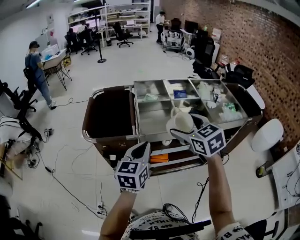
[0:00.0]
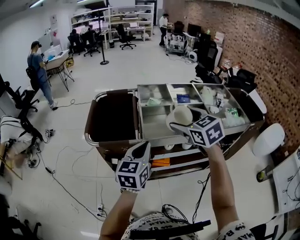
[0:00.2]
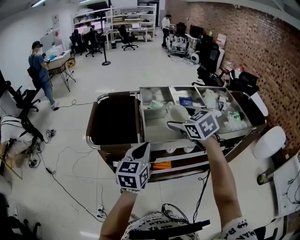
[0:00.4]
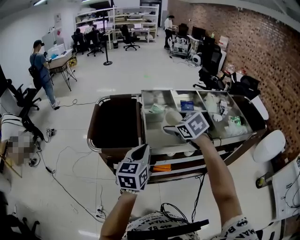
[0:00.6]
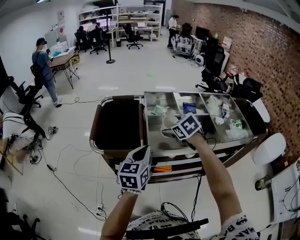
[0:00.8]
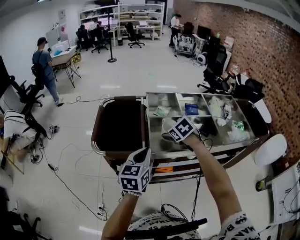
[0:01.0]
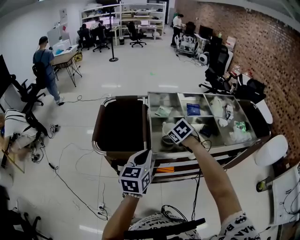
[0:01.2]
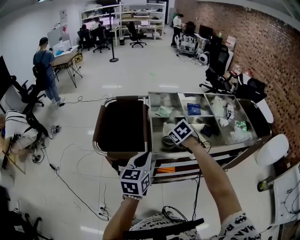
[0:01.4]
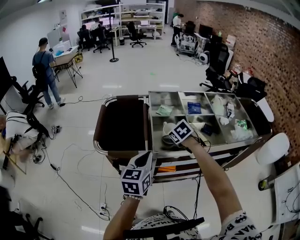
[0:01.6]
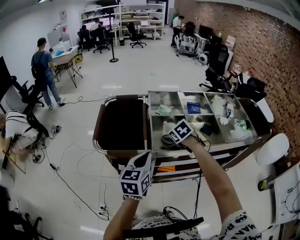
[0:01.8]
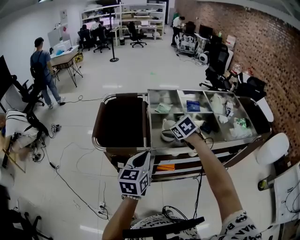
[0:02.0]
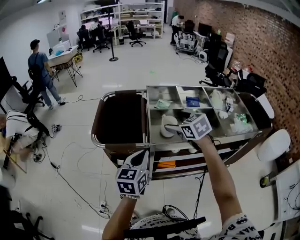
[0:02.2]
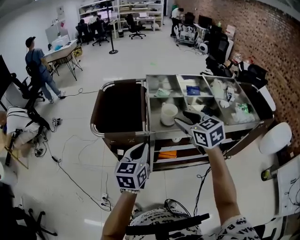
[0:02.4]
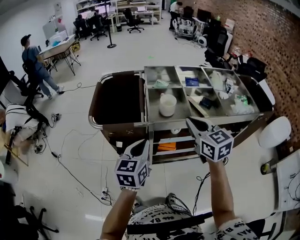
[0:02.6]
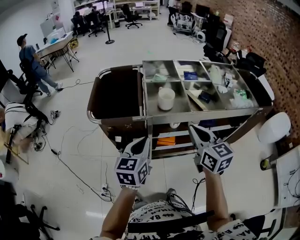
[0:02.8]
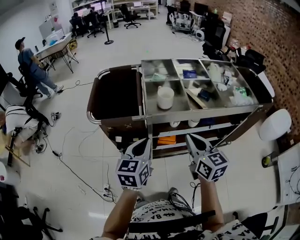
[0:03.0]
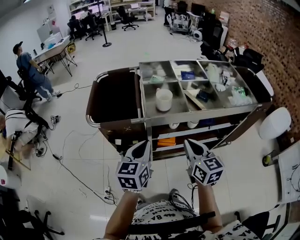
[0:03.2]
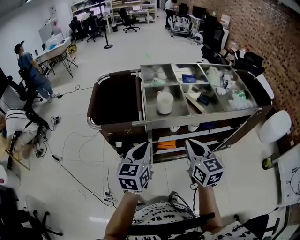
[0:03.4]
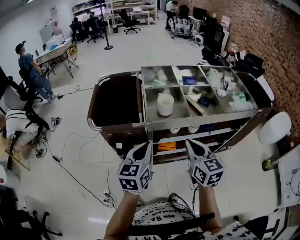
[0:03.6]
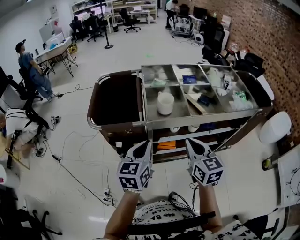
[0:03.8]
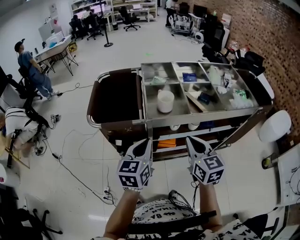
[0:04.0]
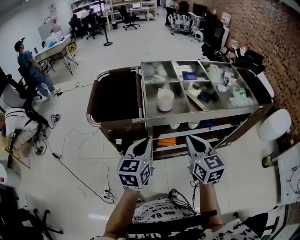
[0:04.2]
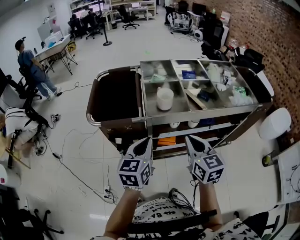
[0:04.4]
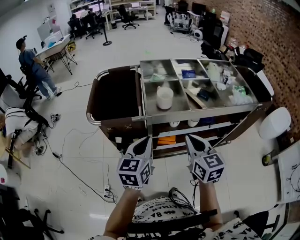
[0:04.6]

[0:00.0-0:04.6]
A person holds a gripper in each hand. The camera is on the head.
0:00.0 to 0:01.6: The right gripper moves forward and downward, approximately 20 cm, and points its fingers roughly 30 degrees further downward. Meanwhile the left gripper ends up about 5 cm from where it was.
0:01.6 to 0:03.0: The right gripper travels backward by some 25 cm, tilts its fingers some 50 degrees upward, and closes up. The left gripper travels backward by about 10 cm.
0:03.0 to 0:04.6: The grippers stay close to where they were, moving slightly.

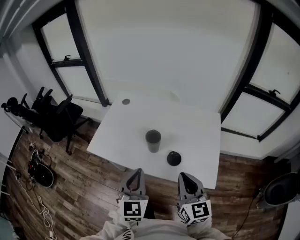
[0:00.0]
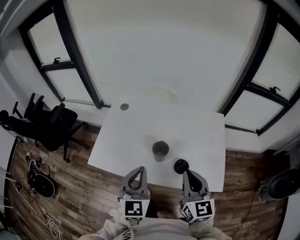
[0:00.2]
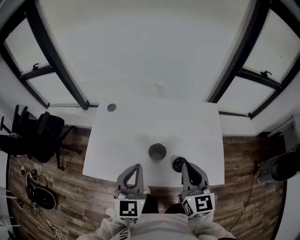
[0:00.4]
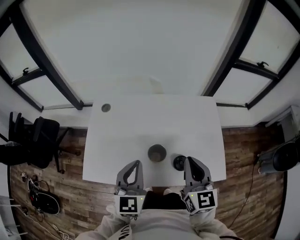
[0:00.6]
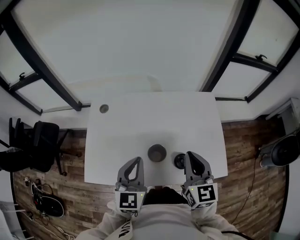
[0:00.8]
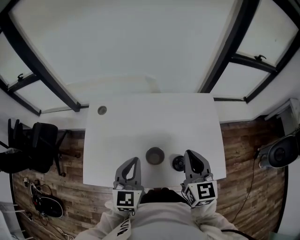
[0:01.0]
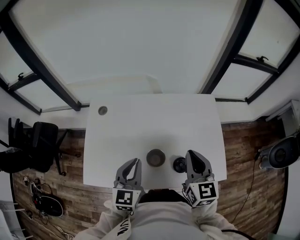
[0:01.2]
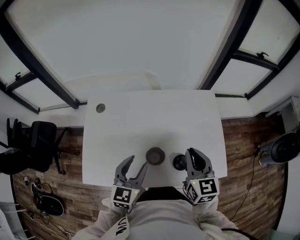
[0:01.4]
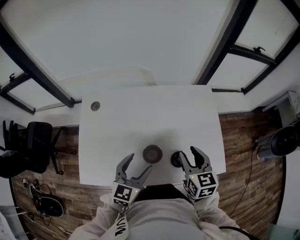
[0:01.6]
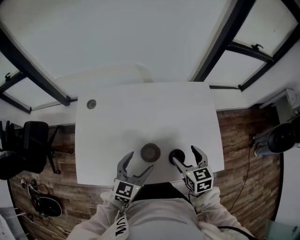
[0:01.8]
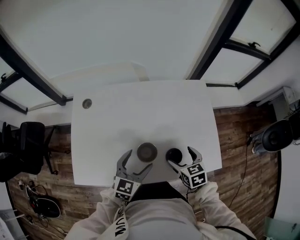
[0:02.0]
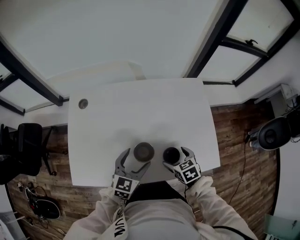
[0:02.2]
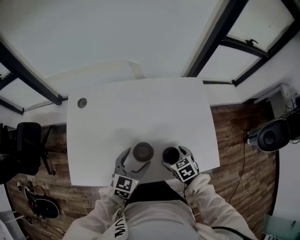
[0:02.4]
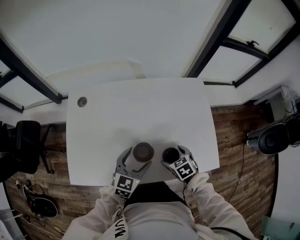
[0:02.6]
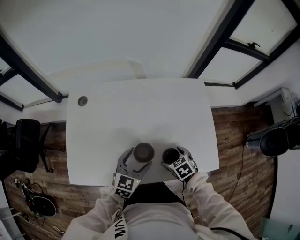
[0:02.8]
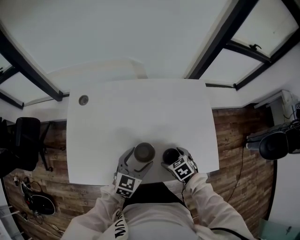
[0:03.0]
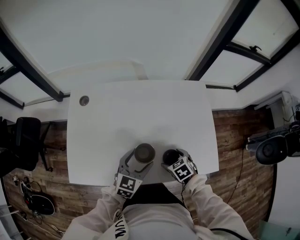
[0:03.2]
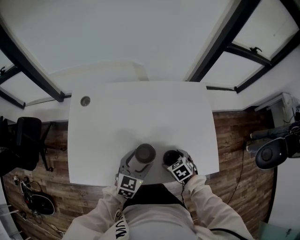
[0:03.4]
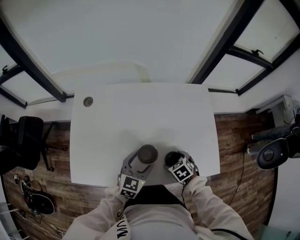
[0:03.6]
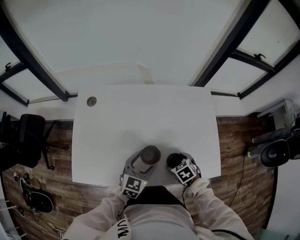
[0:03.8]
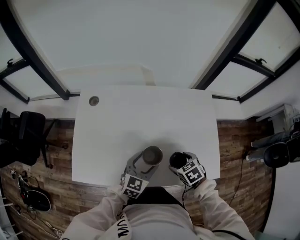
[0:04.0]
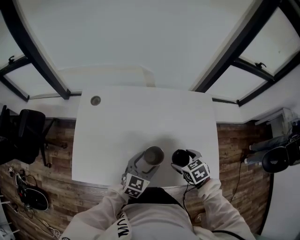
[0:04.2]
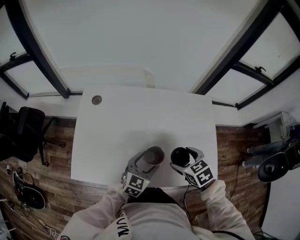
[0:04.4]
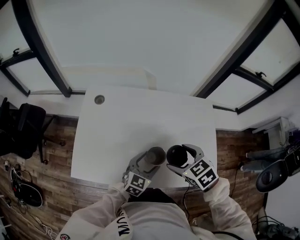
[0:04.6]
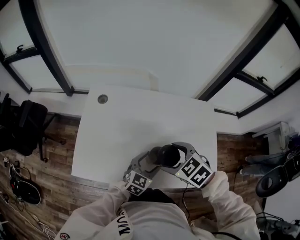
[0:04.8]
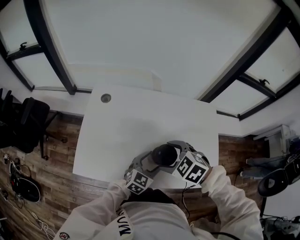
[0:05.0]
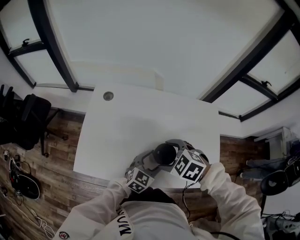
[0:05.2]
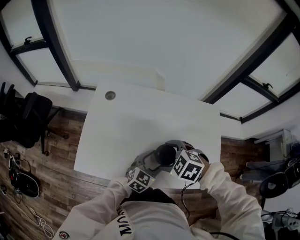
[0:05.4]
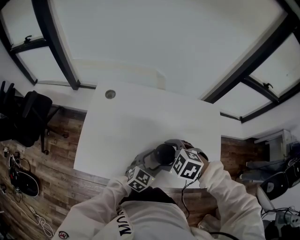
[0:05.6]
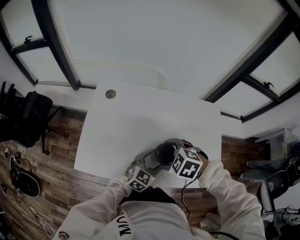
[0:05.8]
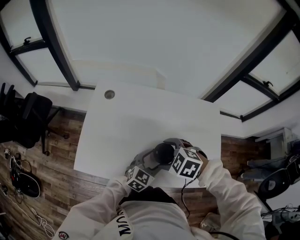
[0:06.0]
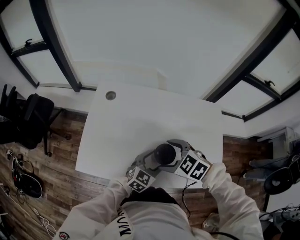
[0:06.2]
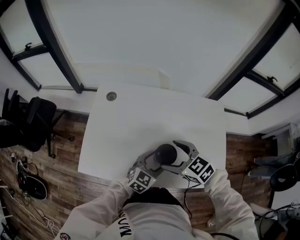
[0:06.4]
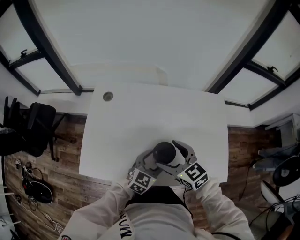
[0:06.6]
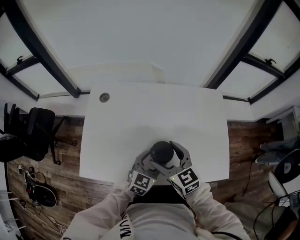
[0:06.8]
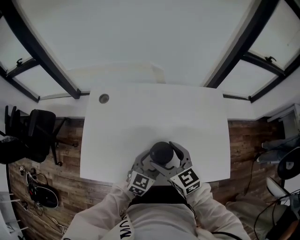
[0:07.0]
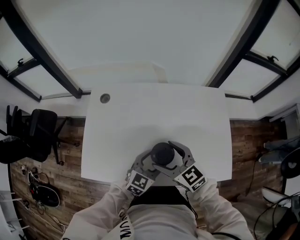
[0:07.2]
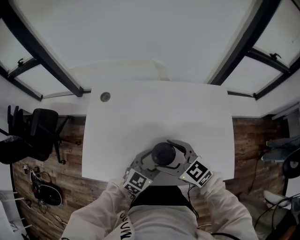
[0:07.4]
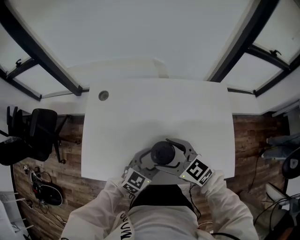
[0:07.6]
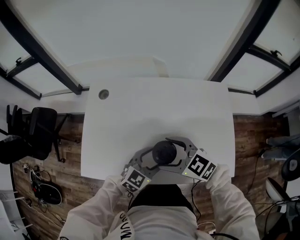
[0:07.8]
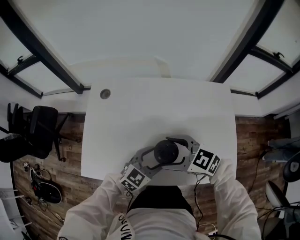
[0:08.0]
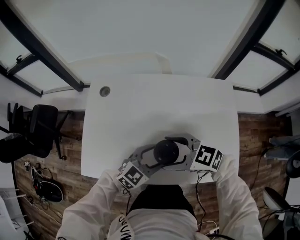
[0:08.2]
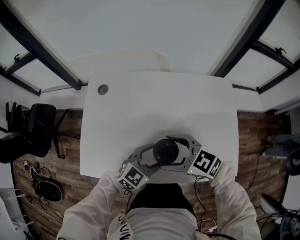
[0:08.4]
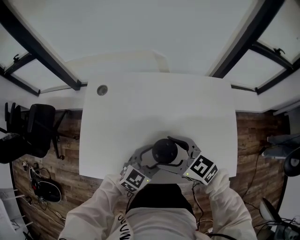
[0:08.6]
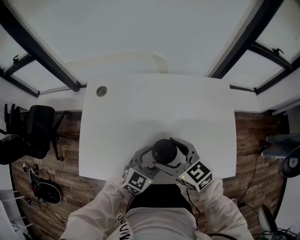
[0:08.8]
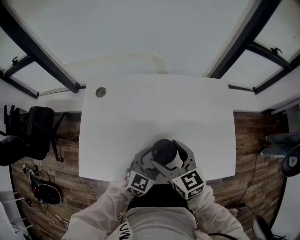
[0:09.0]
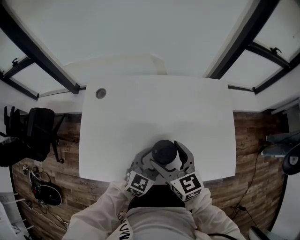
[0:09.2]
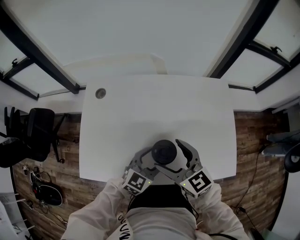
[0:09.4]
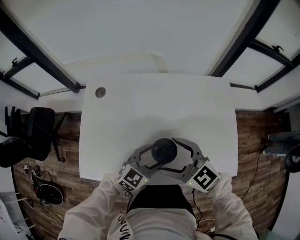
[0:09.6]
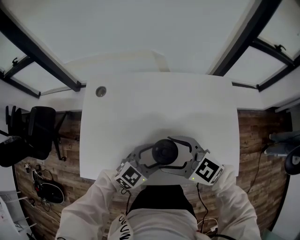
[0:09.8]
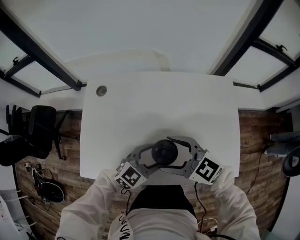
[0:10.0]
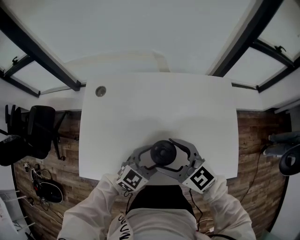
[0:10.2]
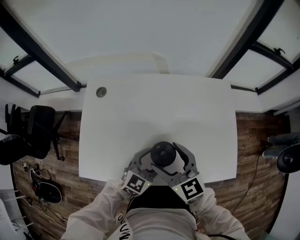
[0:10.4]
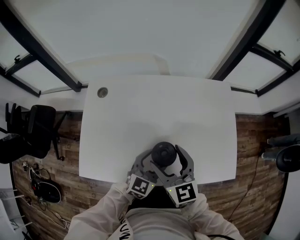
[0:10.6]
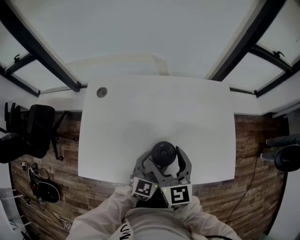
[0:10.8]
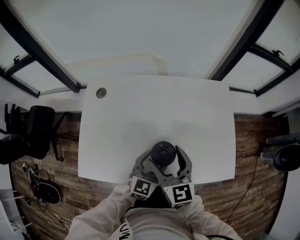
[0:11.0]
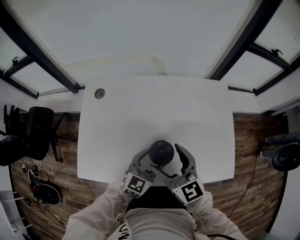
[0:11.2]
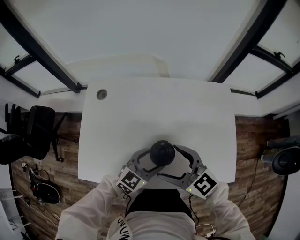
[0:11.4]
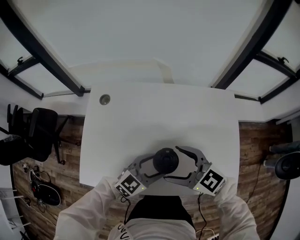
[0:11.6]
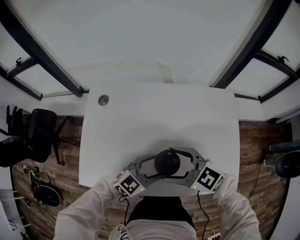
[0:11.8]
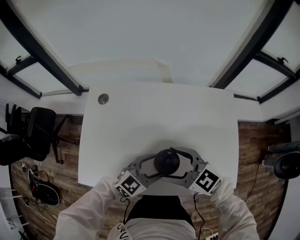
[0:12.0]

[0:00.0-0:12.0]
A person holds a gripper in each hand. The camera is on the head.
0:00.0 to 0:01.6: The right gripper moves roughly 25 cm, and turns by approximately 30 degrees; the left gripper moves roughly 25 cm, rotates approximately 40 degrees, and opens up.
0:01.6 to 0:03.0: The left gripper is displaced downward by approximately 10 cm. The right gripper goes approximately 20 cm downward, points its fingers some 40 degrees further downward, and opens up.
0:03.0 to 0:04.4: The right gripper heads upward, covering some 15 cm.
0:04.4 to 0:06.0: The right gripper goes roughly 15 cm to the left, and changes its angle by about 40 degrees.
0:06.0 to 0:07.6: The right gripper angles its fingers upward, by roughly 40 degrees.
0:07.6 to 0:09.0: The right gripper turns by some 30 degrees.
0:10.4 to 0:12.0: The right gripper changes its angle by about 30 degrees.

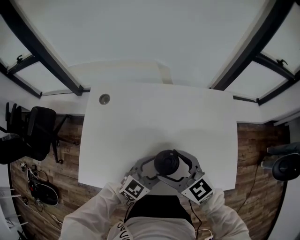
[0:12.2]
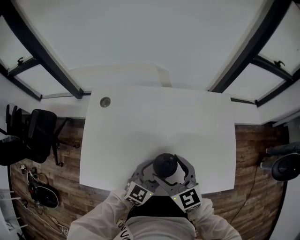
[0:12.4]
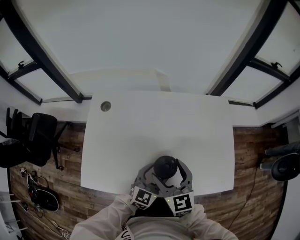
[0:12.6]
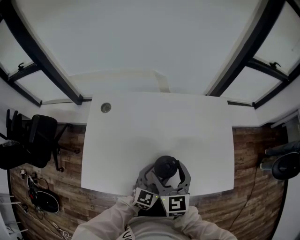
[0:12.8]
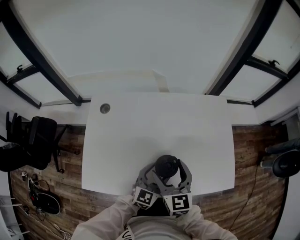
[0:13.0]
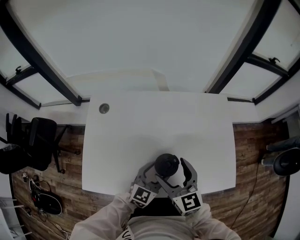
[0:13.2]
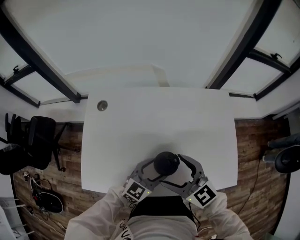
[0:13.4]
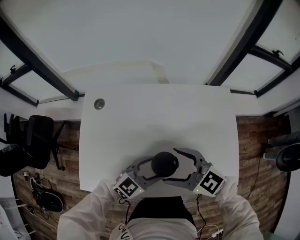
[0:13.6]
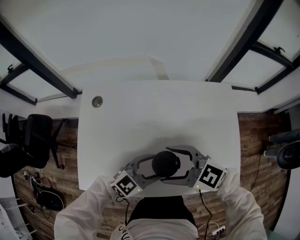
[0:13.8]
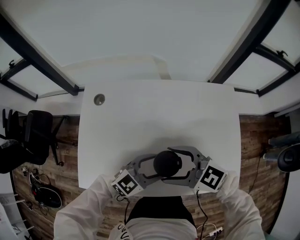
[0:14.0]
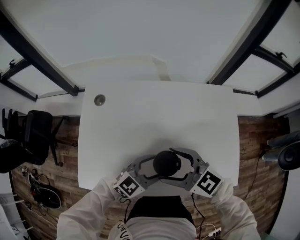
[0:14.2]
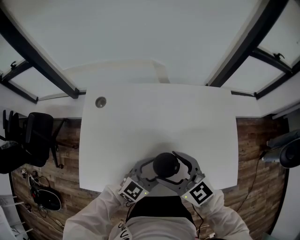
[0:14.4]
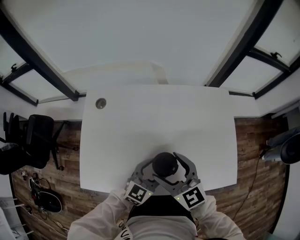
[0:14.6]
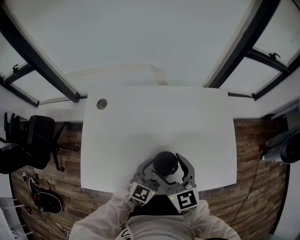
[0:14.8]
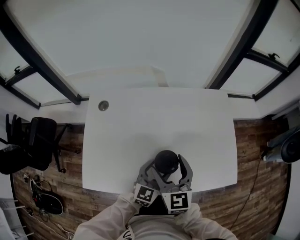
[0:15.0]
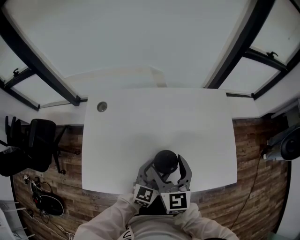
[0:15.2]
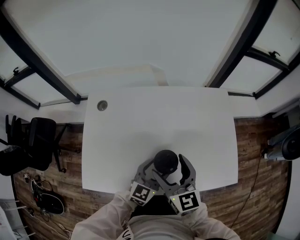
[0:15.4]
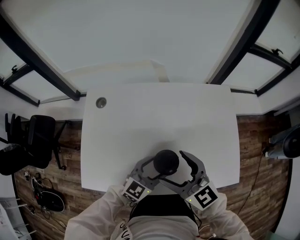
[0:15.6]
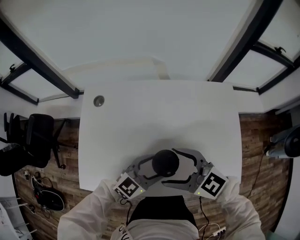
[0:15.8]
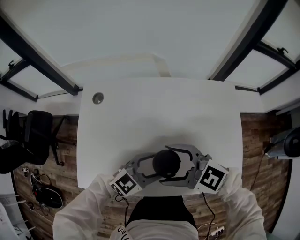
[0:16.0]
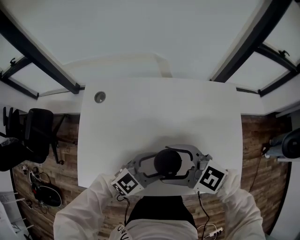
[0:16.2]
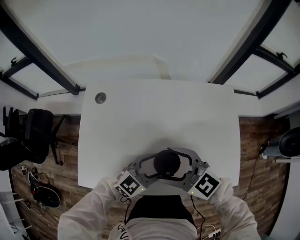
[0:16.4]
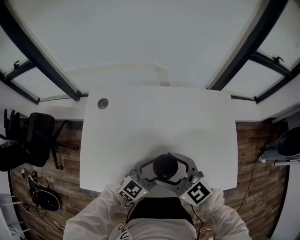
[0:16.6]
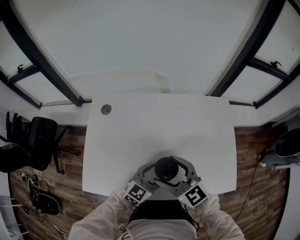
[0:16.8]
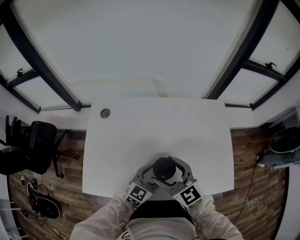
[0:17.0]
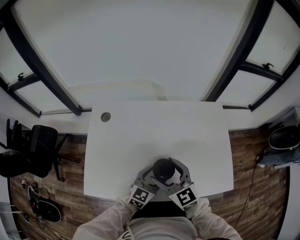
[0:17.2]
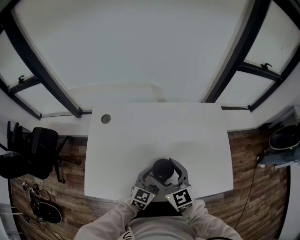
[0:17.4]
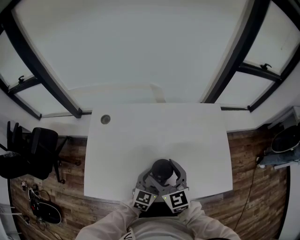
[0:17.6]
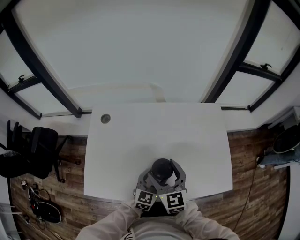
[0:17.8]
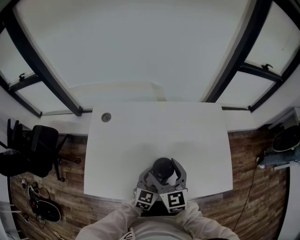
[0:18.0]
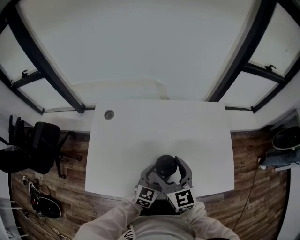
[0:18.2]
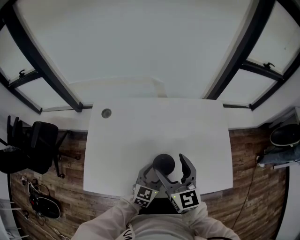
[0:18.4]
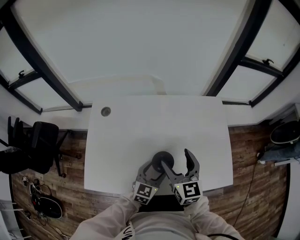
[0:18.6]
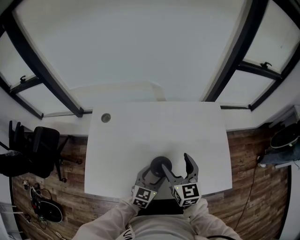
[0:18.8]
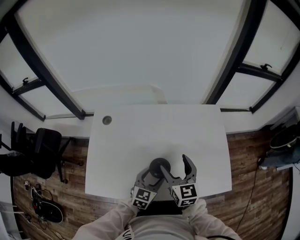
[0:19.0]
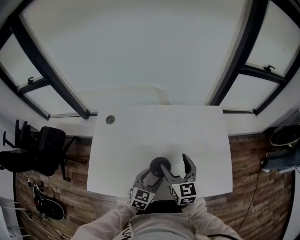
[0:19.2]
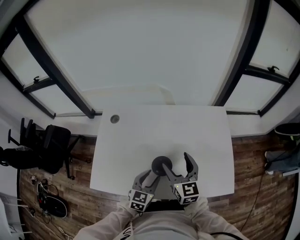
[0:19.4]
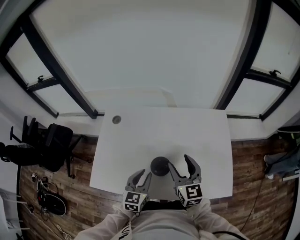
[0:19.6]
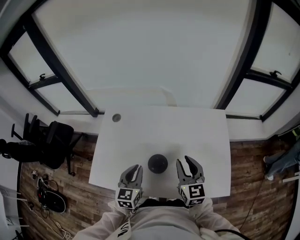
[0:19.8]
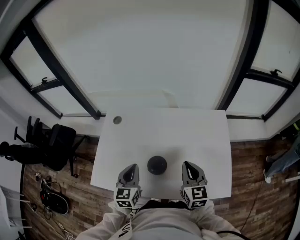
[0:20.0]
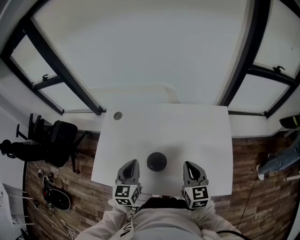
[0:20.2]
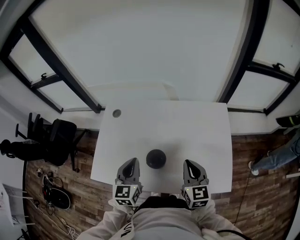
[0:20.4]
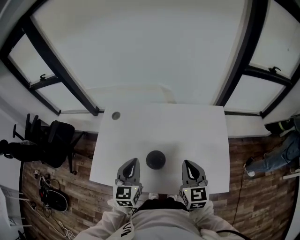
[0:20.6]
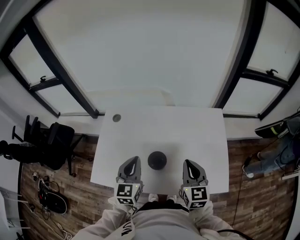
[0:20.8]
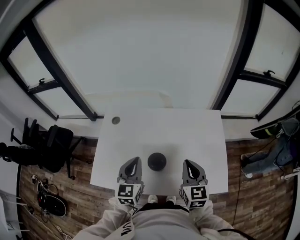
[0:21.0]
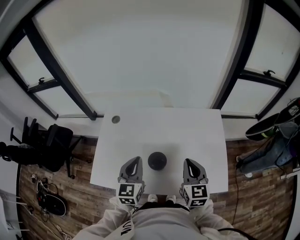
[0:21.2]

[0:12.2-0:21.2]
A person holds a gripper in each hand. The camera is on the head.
0:12.2 to 0:13.8: The right gripper rotates approximately 20 degrees.
0:13.8 to 0:15.2: The left gripper changes its angle by about 30 degrees. Meanwhile the right gripper turns by approximately 60 degrees.
0:15.2 to 0:16.6: The right gripper swivels about 50 degrees.
0:16.6 to 0:18.2: The right gripper changes its angle by approximately 30 degrees.
0:18.2 to 0:19.8: The left gripper moves upward and to the left, about 10 cm, turns by roughly 20 degrees, and closes. The right gripper travels to the right by roughly 10 cm, and closes.
0:19.8 to 0:21.2: The left gripper shifts about 10 cm upward.
